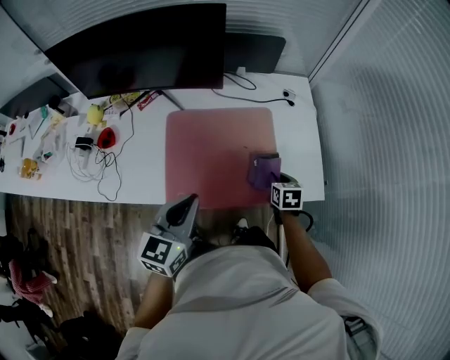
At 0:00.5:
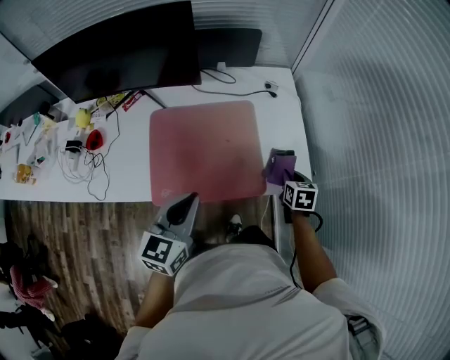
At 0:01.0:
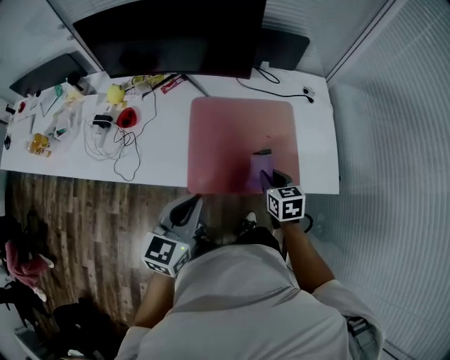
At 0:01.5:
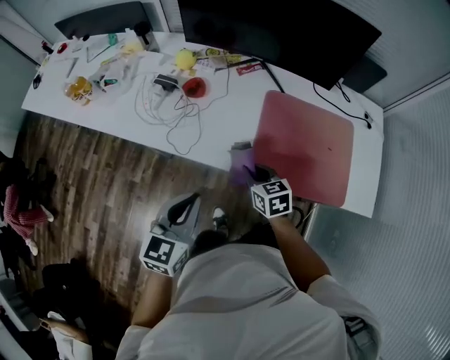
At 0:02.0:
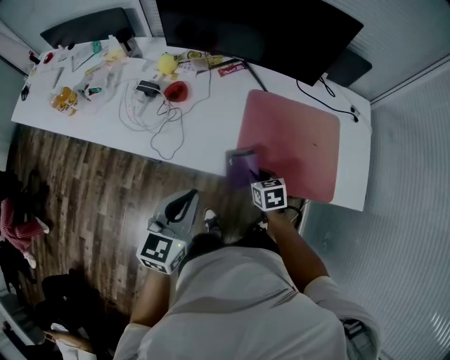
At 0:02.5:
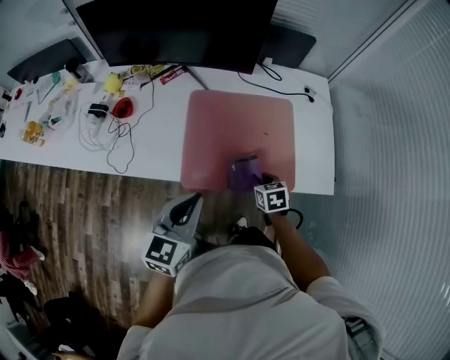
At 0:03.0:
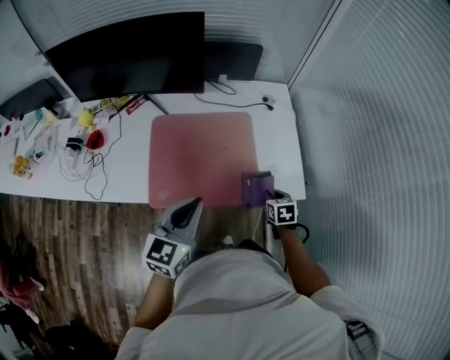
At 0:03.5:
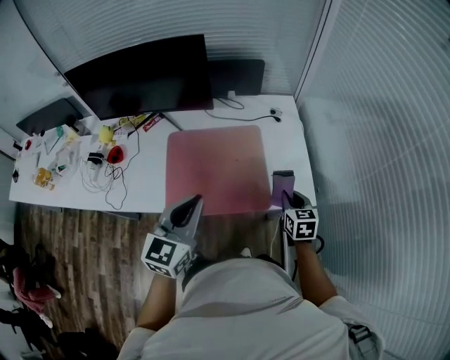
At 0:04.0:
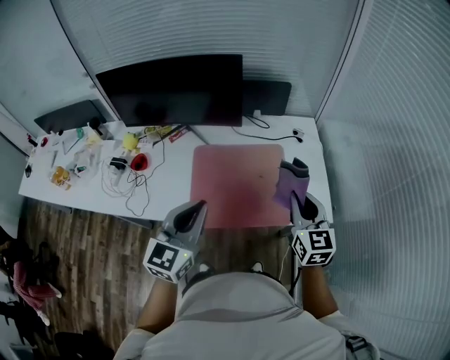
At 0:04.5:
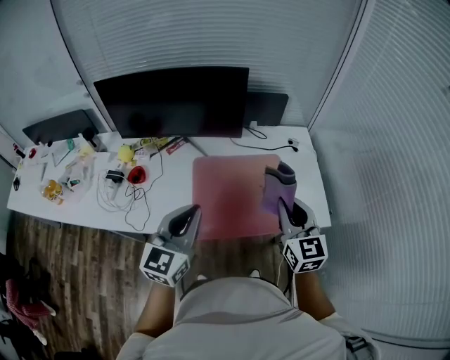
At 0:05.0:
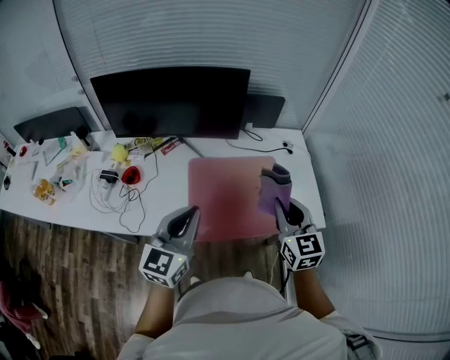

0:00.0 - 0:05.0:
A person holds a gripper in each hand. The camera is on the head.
0:00.0 - 0:02.5: The right gripper reaches approximately 10 cm upward, then returns.
0:02.5 - 0:05.0: The right gripper travels upward by roughly 30 cm, and angles its fingers upward, by roughly 40 degrees. Meanwhile the left gripper heads upward, covering some 10 cm, and travels to the right and back again, some 15 cm each way.

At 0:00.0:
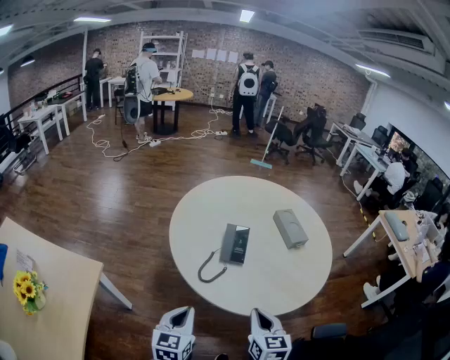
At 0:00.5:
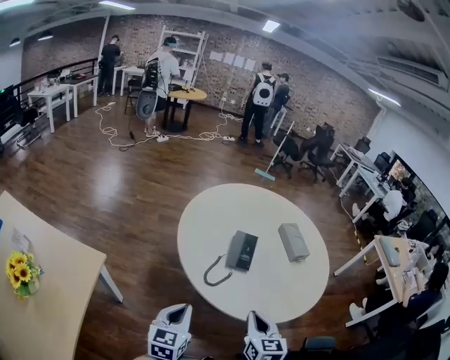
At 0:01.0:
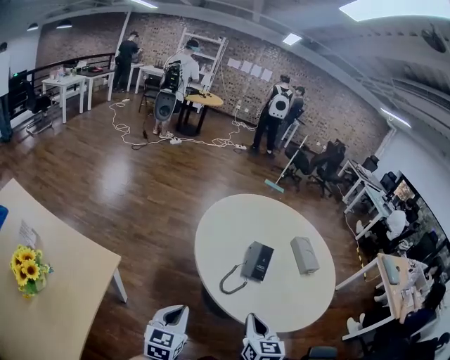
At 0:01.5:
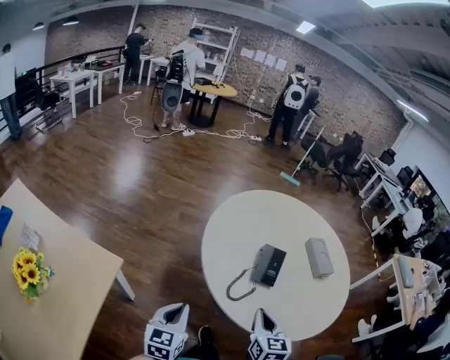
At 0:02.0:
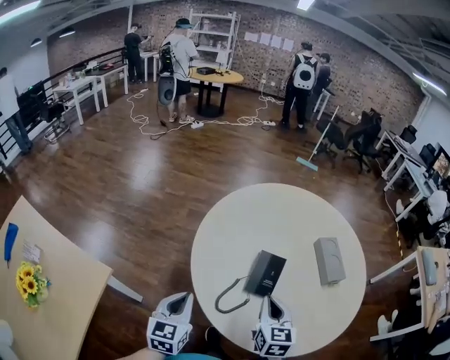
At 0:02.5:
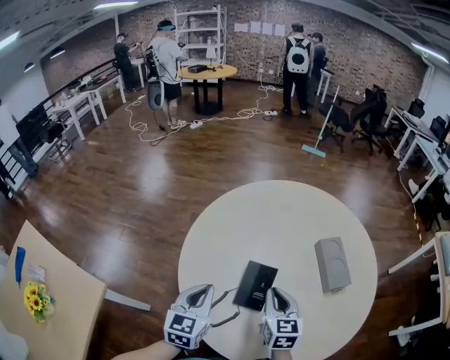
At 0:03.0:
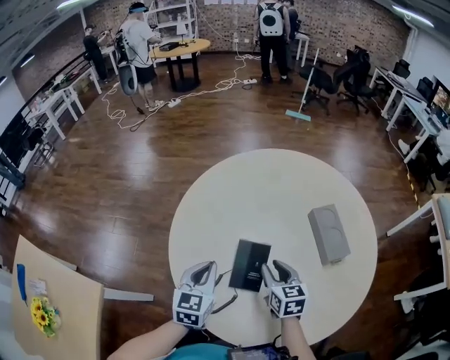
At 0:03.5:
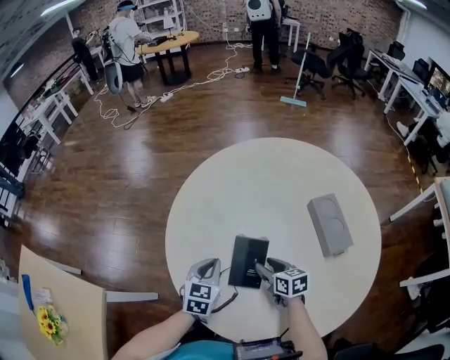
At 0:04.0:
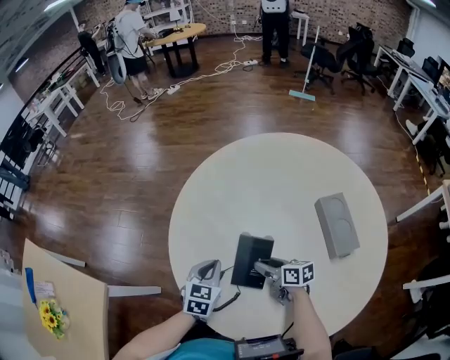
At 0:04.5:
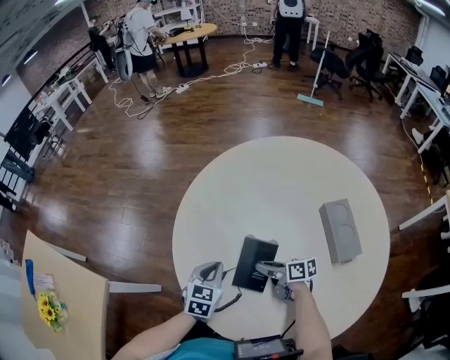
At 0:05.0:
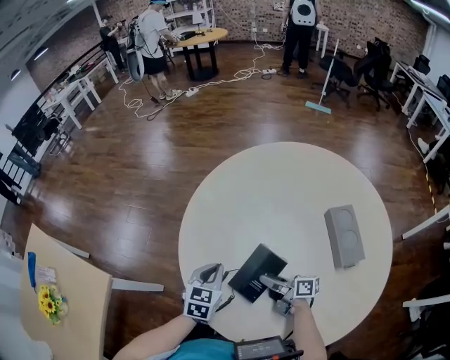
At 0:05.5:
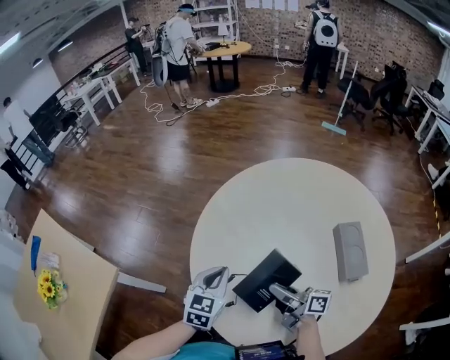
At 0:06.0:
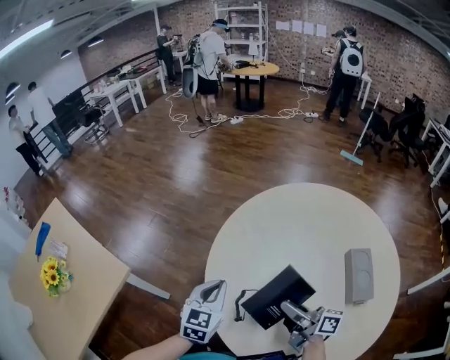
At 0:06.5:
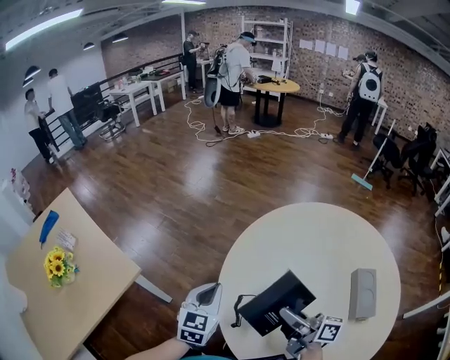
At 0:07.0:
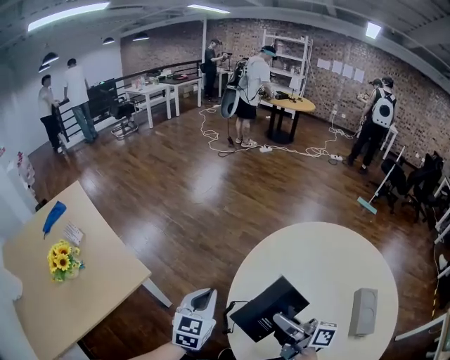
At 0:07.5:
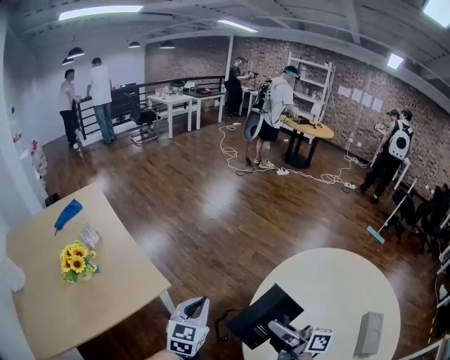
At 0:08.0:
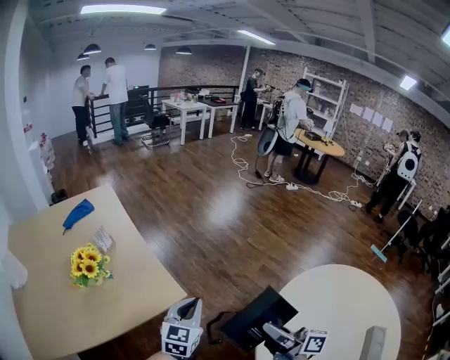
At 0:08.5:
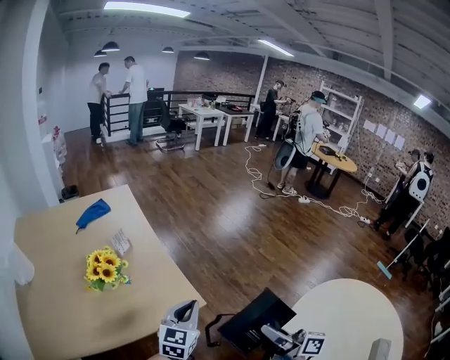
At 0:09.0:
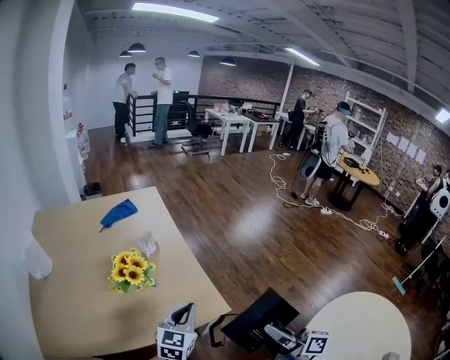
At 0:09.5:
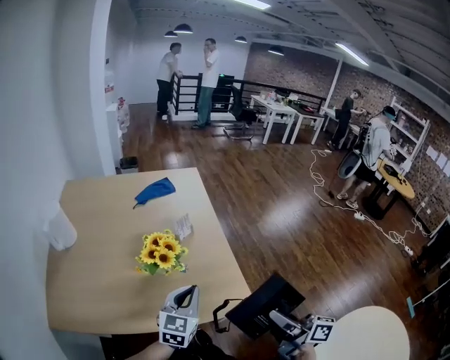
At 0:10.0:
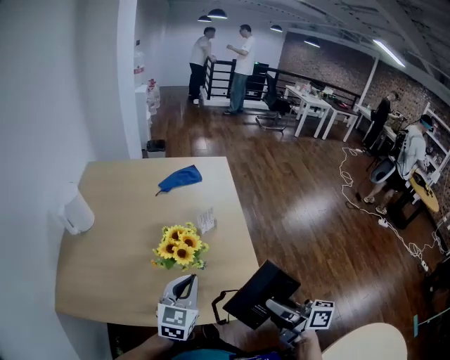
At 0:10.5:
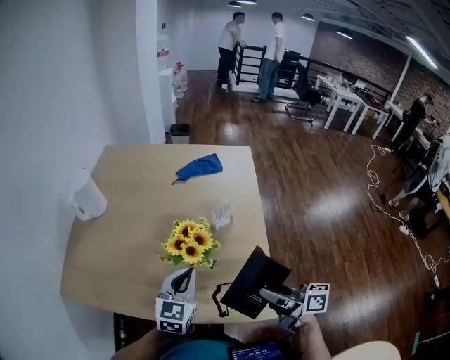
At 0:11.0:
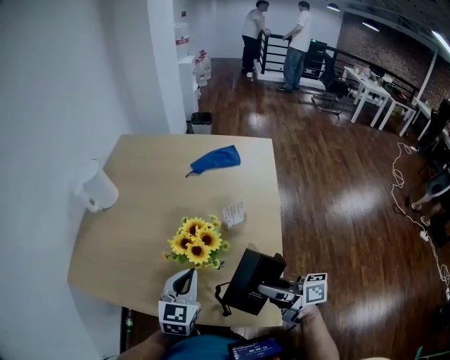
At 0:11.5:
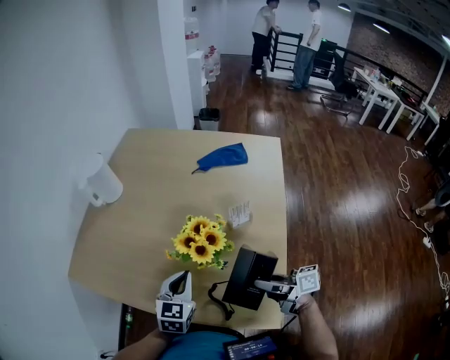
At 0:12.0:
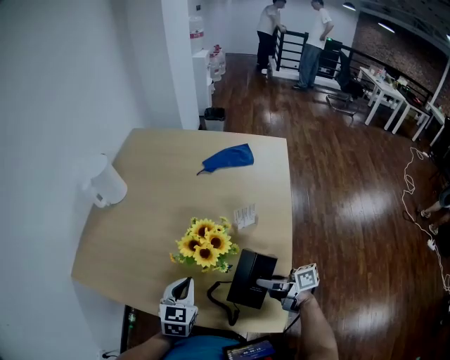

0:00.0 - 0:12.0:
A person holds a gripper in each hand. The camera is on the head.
0:00.0 - 0:02.0: The left gripper travels forward and to the left by some 20 cm. The right gripper shifts roughly 25 cm forward.
0:02.0 - 0:04.0: The right gripper travels downward and forward by about 25 cm, turns by roughly 50 degrees, and opens its fingers. The left gripper moves to the right, forward and downward, about 25 cm, and rotates roughly 20 degrees.
0:04.0 - 0:06.0: The left gripper moves upward and to the left, roughly 15 cm, and changes its angle by approximately 20 degrees. Meanwhile the right gripper travels upward by some 15 cm, and swivels roughly 30 degrees.
0:06.0 - 0:08.0: The left gripper ends up roughly 35 cm from where it was, and rotates approximately 30 degrees, while the right gripper ends up approximately 35 cm from where it was, and changes its angle by about 30 degrees.
0:08.0 - 0:10.0: The left gripper ends up approximately 35 cm from where it was, and swivels approximately 30 degrees. The right gripper ends up some 35 cm from where it was, and turns by approximately 40 degrees.
0:10.0 - 0:12.0: The left gripper is displaced downward by approximately 10 cm, and changes its angle by approximately 30 degrees. Meanwhile the right gripper is displaced downward by approximately 20 cm, and turns by about 40 degrees.

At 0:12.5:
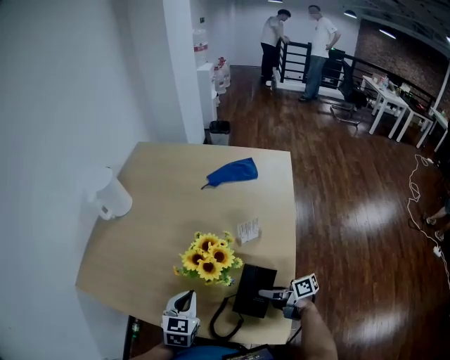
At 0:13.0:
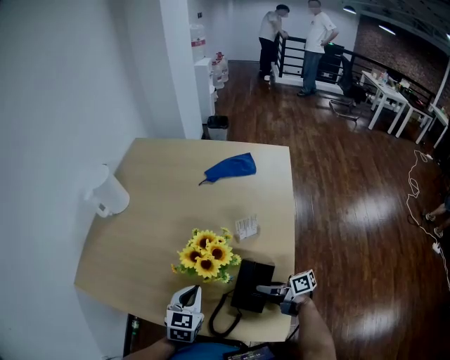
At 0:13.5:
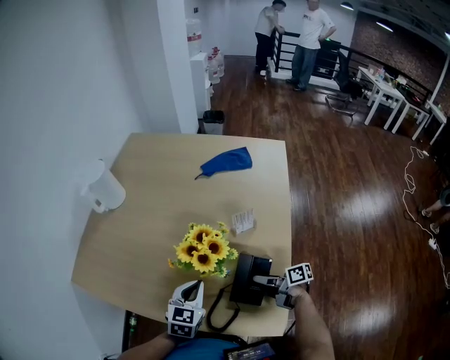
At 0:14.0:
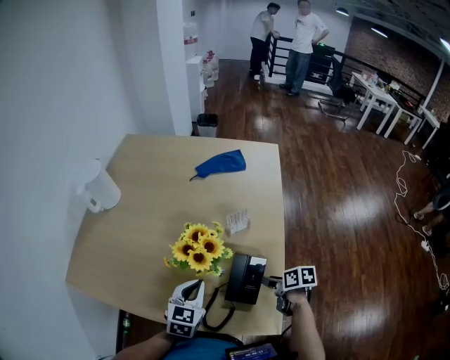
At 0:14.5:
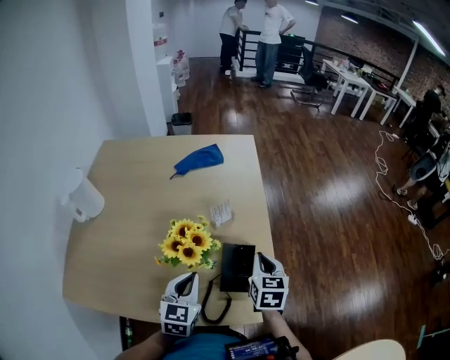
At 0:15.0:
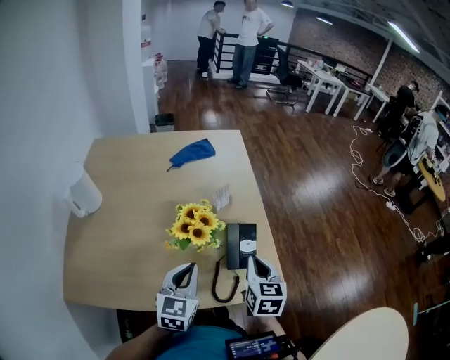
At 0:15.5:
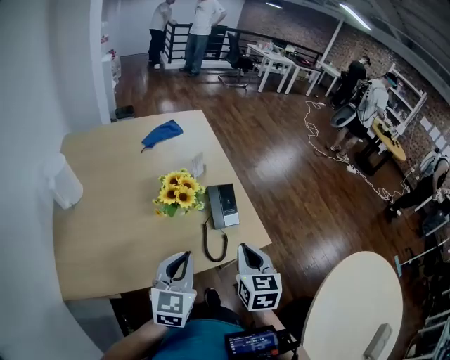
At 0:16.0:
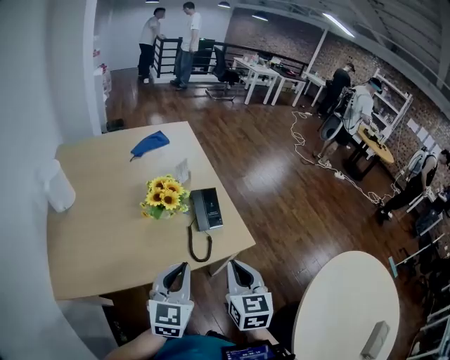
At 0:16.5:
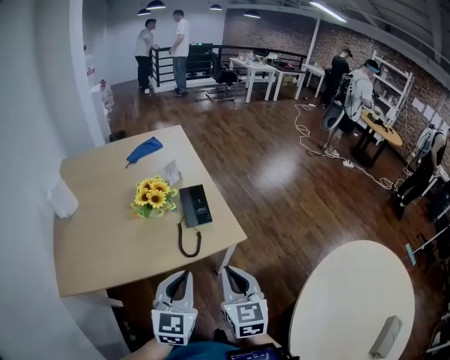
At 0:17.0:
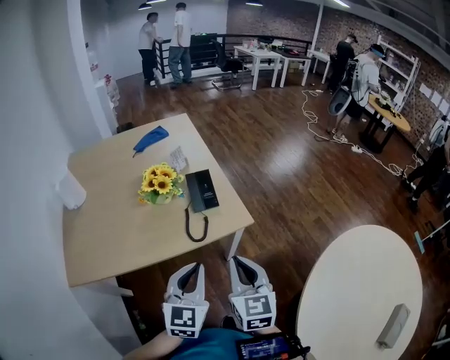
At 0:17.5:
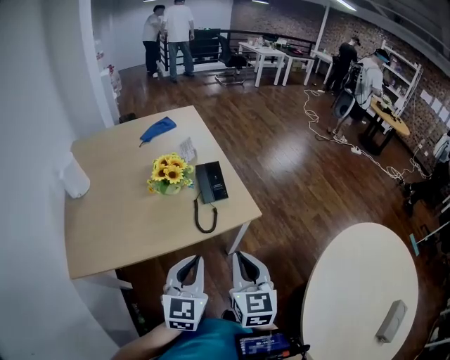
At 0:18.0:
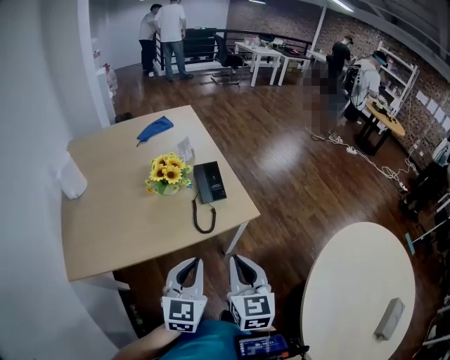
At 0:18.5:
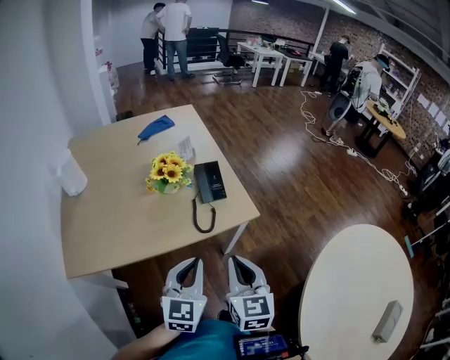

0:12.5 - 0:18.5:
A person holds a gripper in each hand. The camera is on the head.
0:12.5 - 0:14.5: The left gripper shifts by about 10 cm; the right gripper moves upward, approximately 10 cm, rotates roughly 80 degrees, and closes its fingers.
0:14.5 - 0:16.5: The left gripper is displaced backward and upward by approximately 30 cm, and rotates approximately 30 degrees. Meanwhile the right gripper travels backward by about 40 cm.
0:16.5 - 0:18.5: The left gripper ends up some 5 cm from where it was; the right gripper heads backward, covering some 5 cm.

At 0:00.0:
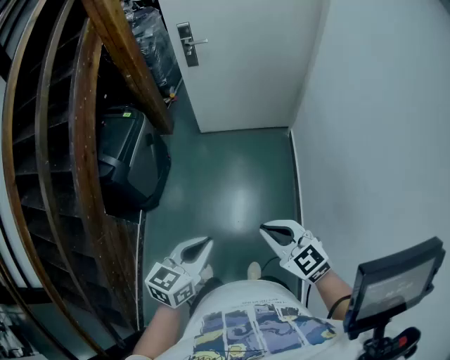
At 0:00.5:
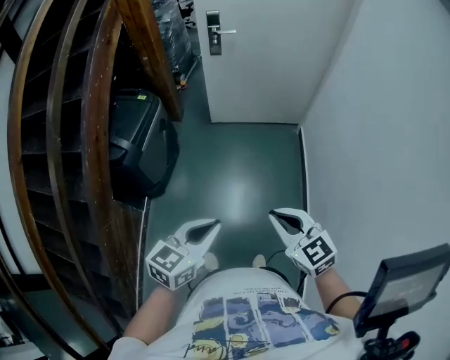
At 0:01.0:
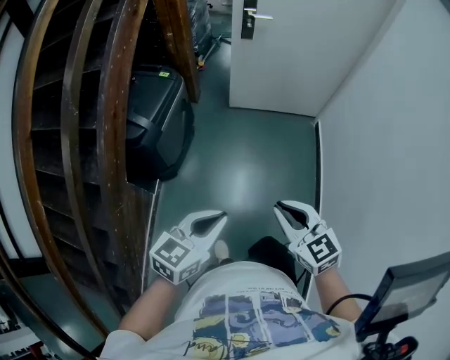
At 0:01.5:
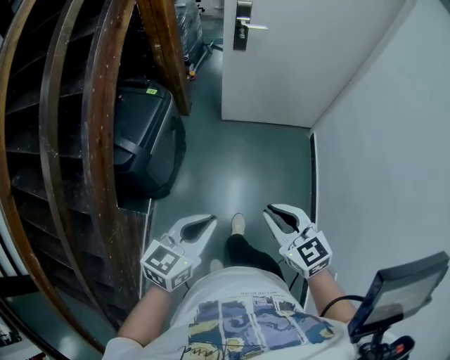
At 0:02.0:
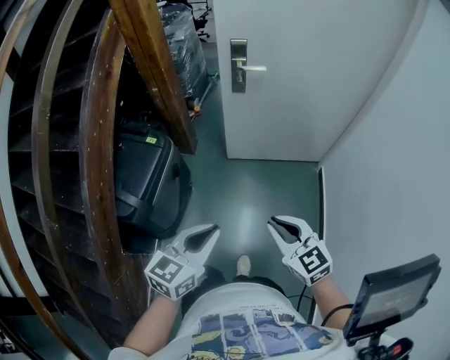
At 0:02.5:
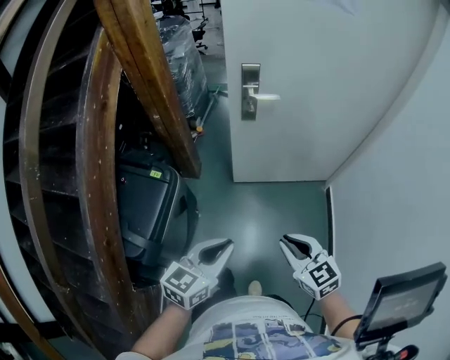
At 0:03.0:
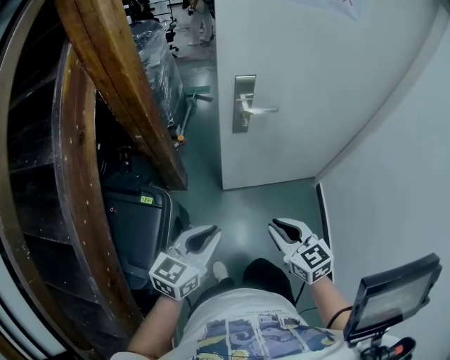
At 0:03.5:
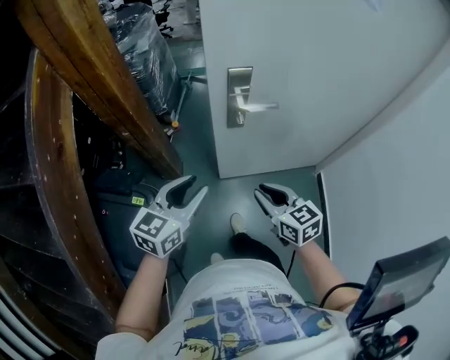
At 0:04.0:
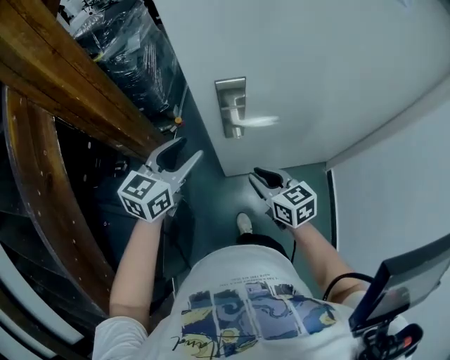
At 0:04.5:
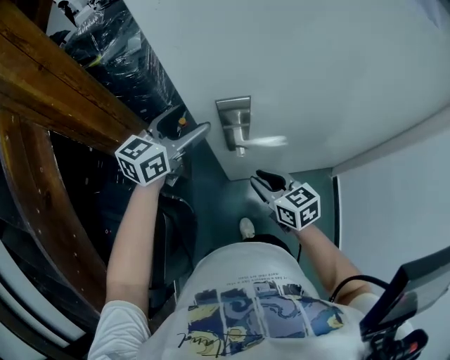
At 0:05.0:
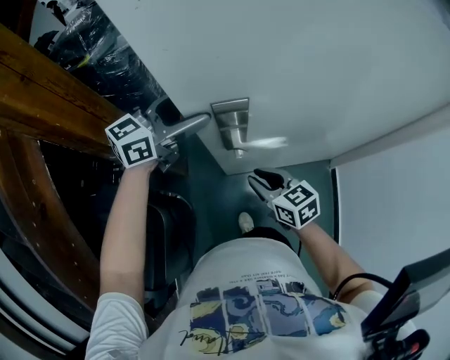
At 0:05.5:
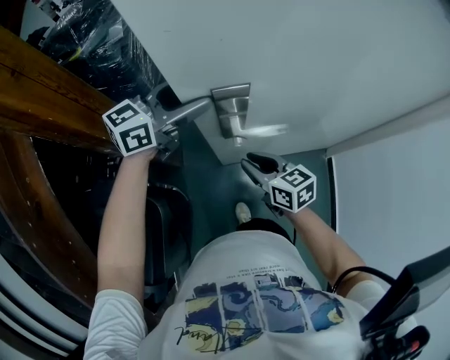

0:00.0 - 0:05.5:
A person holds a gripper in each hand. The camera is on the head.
0:00.0 - 0:02.0: The two grippers go approximately 35 cm forward and to the left.
0:02.0 - 0:03.5: The two grippers go some 40 cm forward. The right gripper rotates roughly 20 degrees.
0:03.5 - 0:05.5: The right gripper moves forward, roughly 20 cm; the left gripper is displaced forward by some 30 cm, rotates about 20 degrees, and opens.
